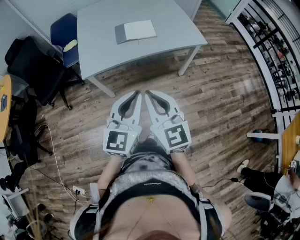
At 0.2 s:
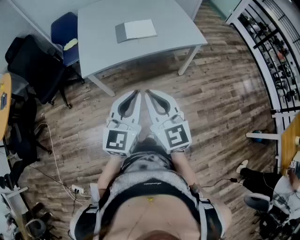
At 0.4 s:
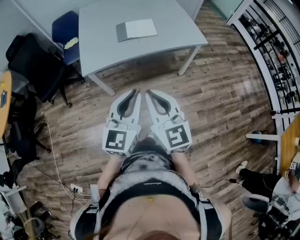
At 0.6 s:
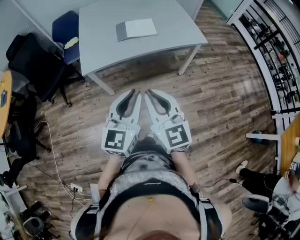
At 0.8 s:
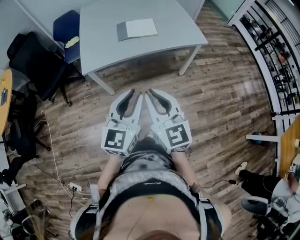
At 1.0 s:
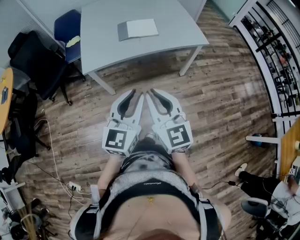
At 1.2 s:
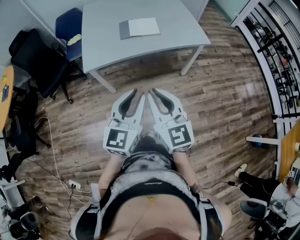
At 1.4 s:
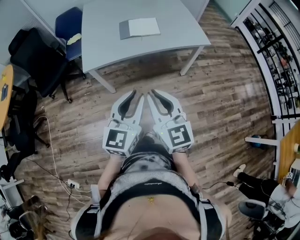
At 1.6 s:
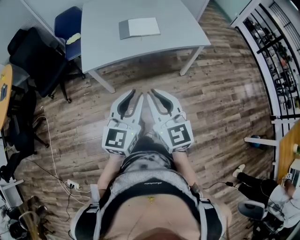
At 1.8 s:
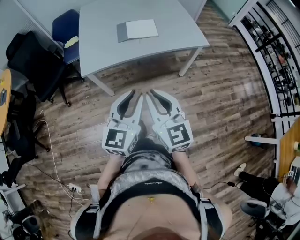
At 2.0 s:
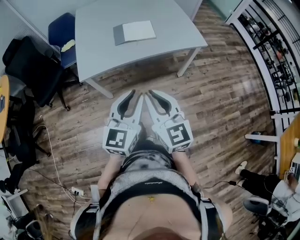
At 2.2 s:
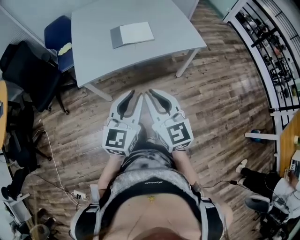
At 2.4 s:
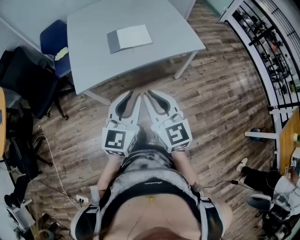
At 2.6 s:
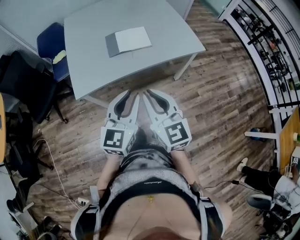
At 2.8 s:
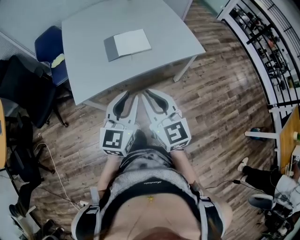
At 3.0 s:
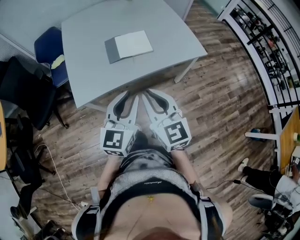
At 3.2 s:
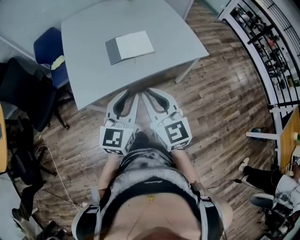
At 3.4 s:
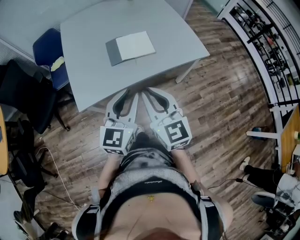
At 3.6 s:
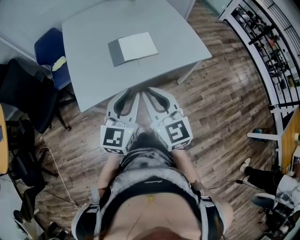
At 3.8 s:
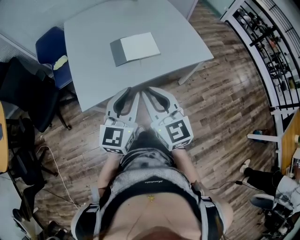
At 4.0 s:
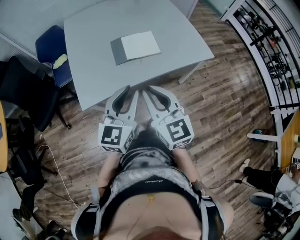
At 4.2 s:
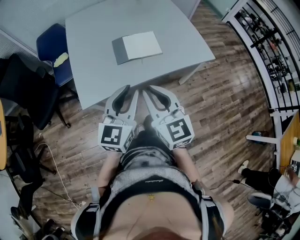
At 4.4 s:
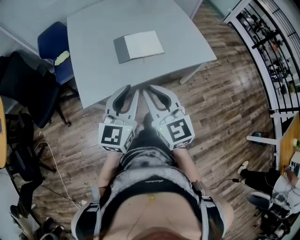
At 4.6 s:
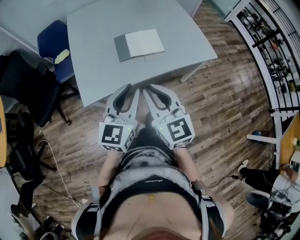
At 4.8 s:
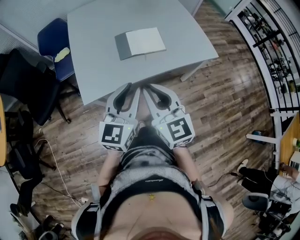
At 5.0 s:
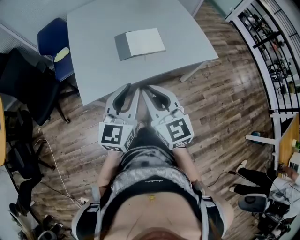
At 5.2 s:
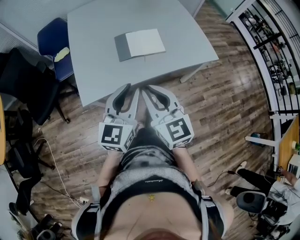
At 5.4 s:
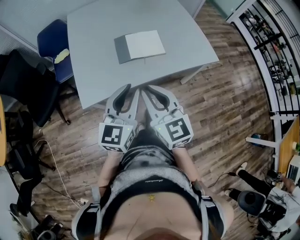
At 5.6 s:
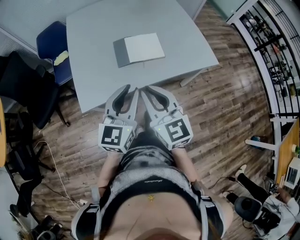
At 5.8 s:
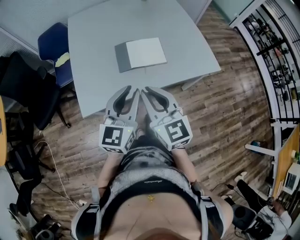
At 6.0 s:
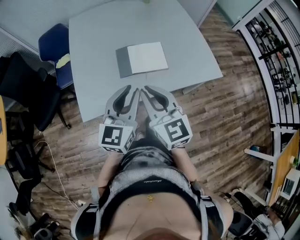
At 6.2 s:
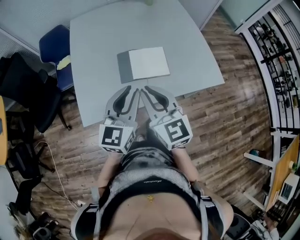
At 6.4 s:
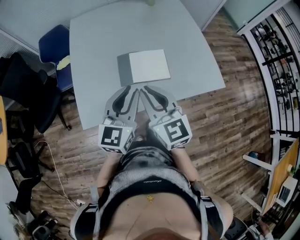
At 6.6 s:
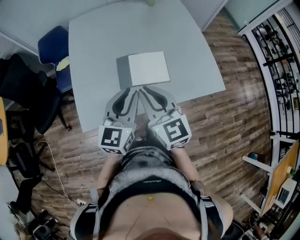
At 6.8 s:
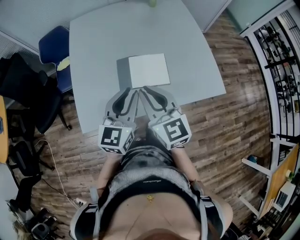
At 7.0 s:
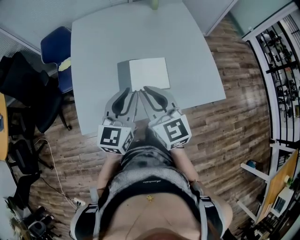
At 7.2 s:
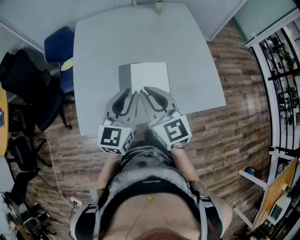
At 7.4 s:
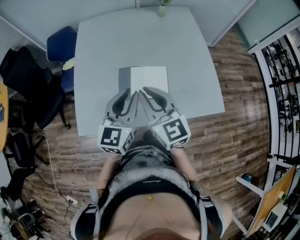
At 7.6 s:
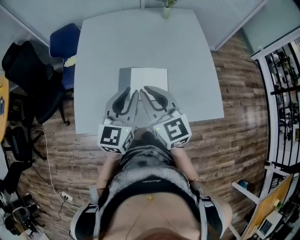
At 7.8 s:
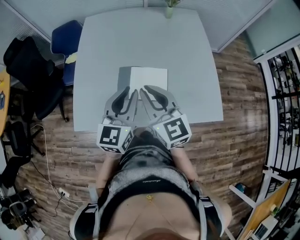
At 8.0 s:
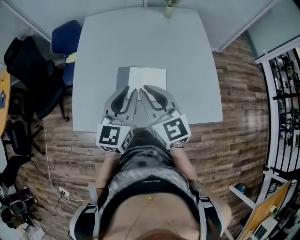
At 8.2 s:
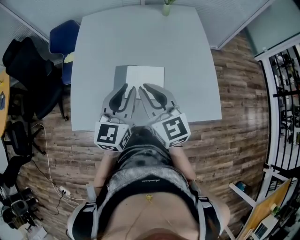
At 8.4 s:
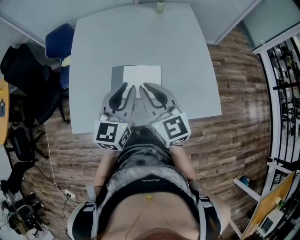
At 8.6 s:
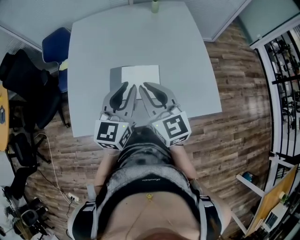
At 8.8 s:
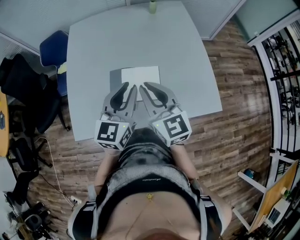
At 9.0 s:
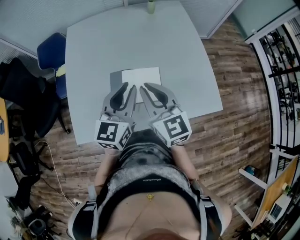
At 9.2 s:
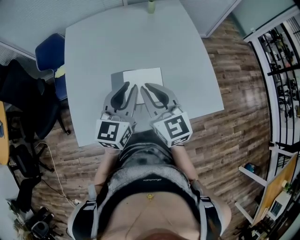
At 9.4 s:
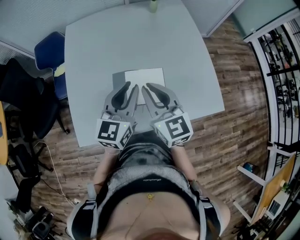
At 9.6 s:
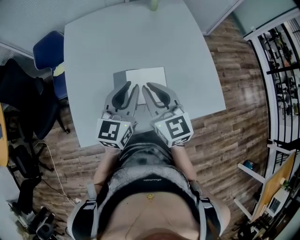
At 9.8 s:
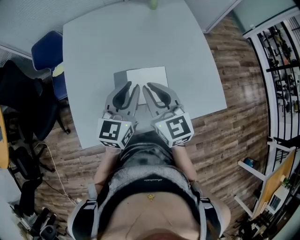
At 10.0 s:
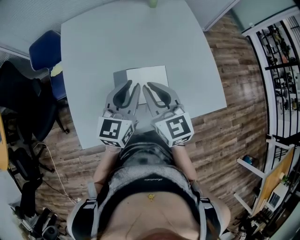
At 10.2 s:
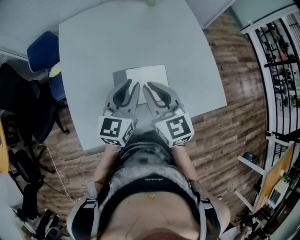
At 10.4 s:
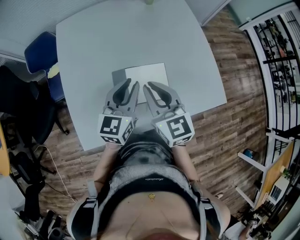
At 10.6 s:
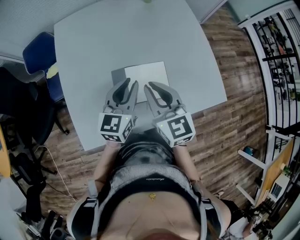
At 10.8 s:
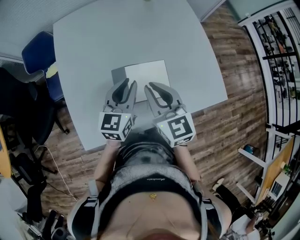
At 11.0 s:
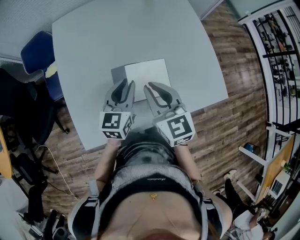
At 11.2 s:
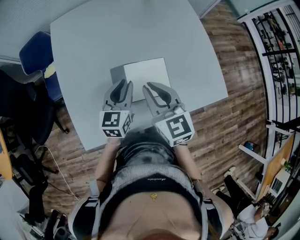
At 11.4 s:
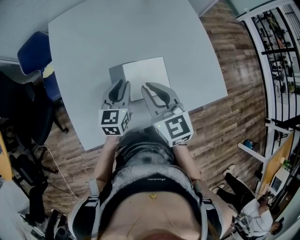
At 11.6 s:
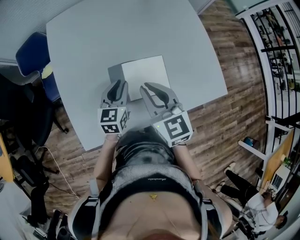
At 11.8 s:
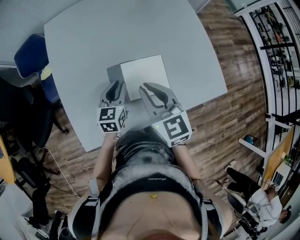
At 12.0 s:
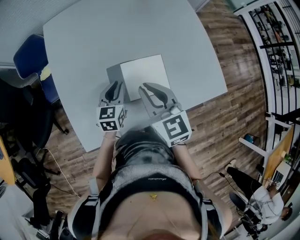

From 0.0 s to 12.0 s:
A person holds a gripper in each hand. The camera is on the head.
From 0.0 s to 1.6 s: The grippers move only a little.
From 1.6 s to 3.0 s: The two grippers go some 20 cm forward.
From 3.0 s to 4.4 s: Both grippers travel together to the left, about 5 cm.
From 4.4 s to 6.0 s: Both grippers move forward, some 10 cm.
From 6.0 s to 7.6 s: Both grippers move forward, roughly 15 cm.
From 7.6 s to 9.0 s: The right gripper changes place by about 5 cm. The left gripper changes place by some 5 cm.
From 9.0 s to 10.4 s: The right gripper travels to the left by roughly 5 cm. The left gripper is displaced forward, to the left and downward by some 10 cm.
From 10.4 s to 12.0 s: The left gripper heads downward, covering about 15 cm.

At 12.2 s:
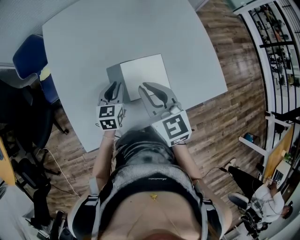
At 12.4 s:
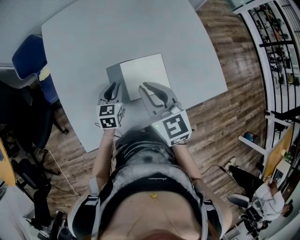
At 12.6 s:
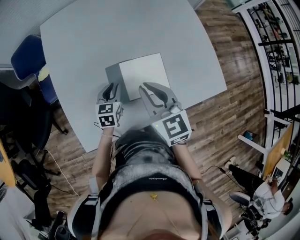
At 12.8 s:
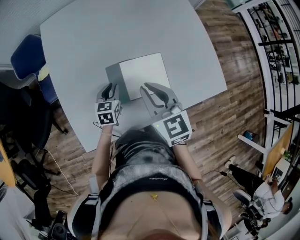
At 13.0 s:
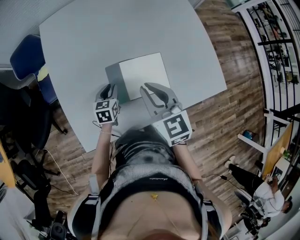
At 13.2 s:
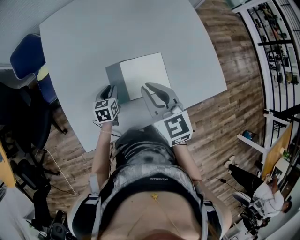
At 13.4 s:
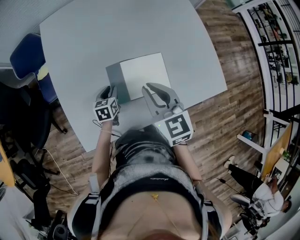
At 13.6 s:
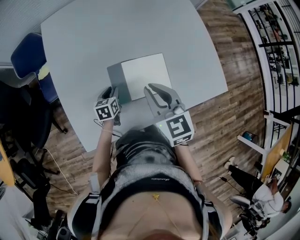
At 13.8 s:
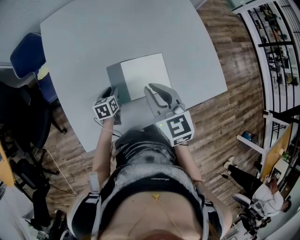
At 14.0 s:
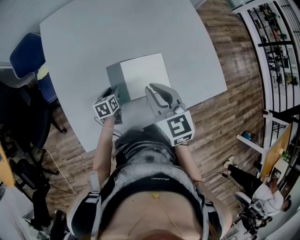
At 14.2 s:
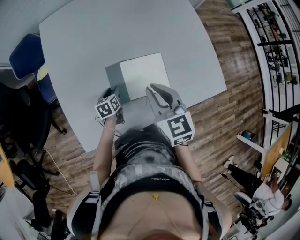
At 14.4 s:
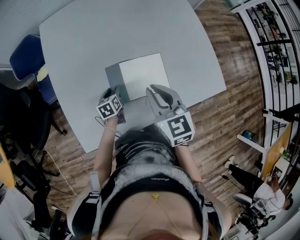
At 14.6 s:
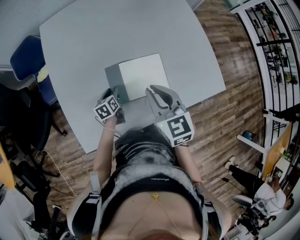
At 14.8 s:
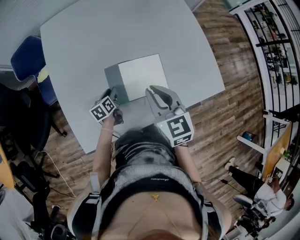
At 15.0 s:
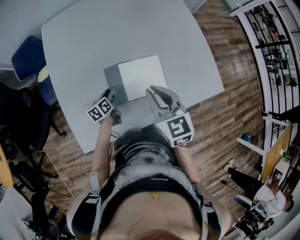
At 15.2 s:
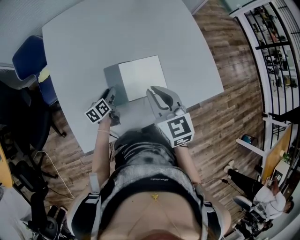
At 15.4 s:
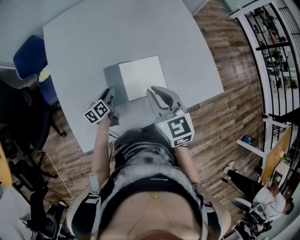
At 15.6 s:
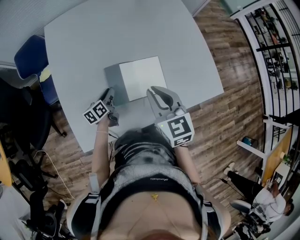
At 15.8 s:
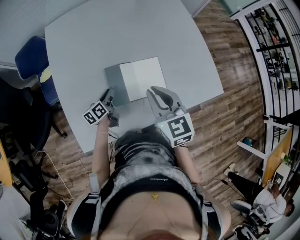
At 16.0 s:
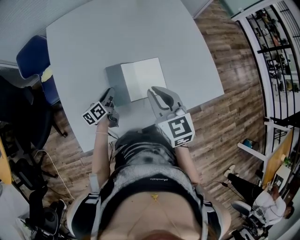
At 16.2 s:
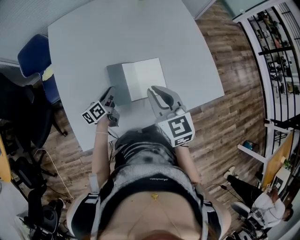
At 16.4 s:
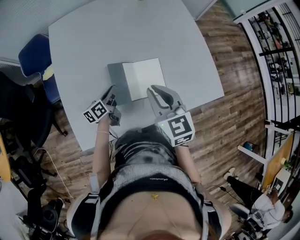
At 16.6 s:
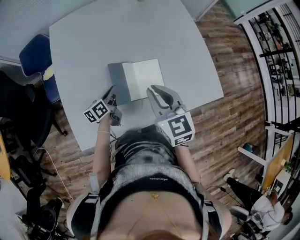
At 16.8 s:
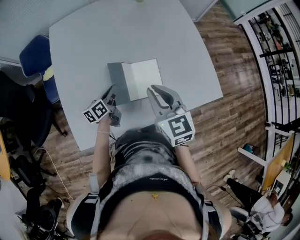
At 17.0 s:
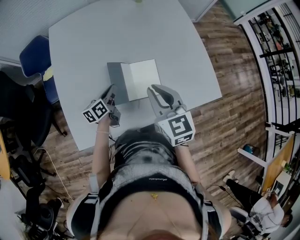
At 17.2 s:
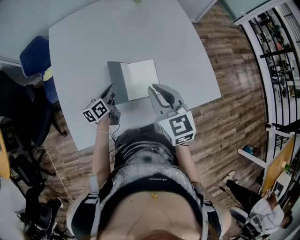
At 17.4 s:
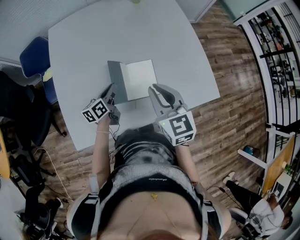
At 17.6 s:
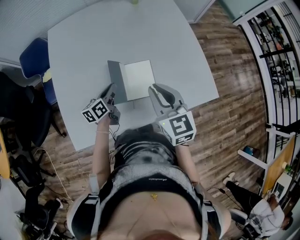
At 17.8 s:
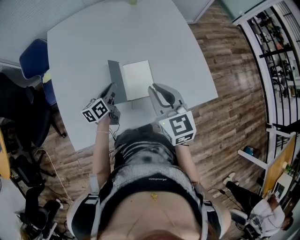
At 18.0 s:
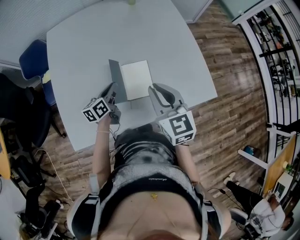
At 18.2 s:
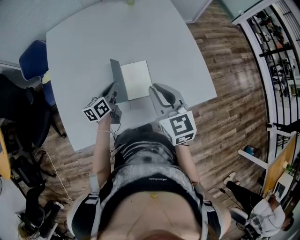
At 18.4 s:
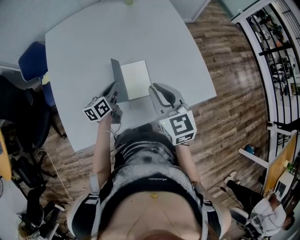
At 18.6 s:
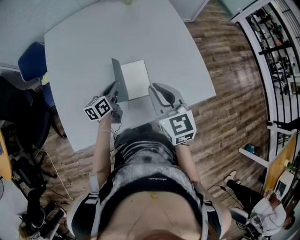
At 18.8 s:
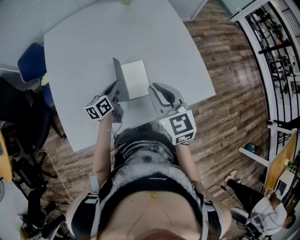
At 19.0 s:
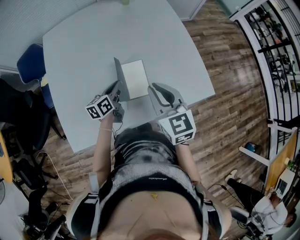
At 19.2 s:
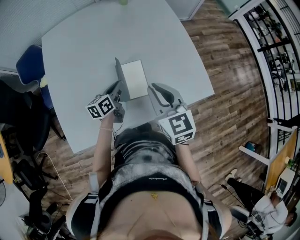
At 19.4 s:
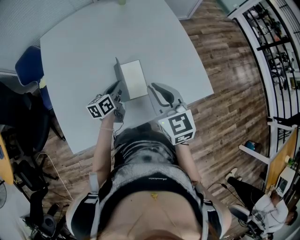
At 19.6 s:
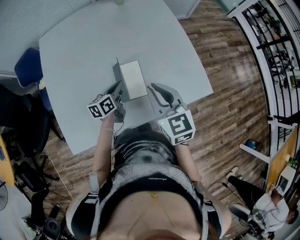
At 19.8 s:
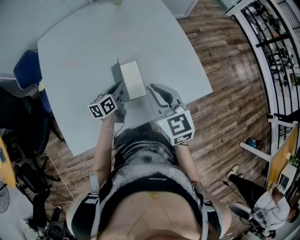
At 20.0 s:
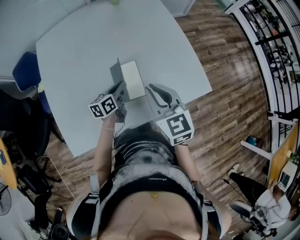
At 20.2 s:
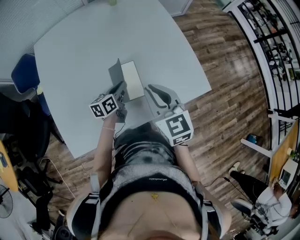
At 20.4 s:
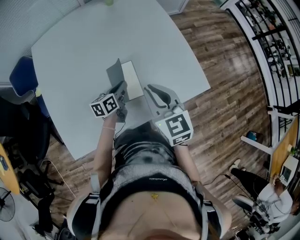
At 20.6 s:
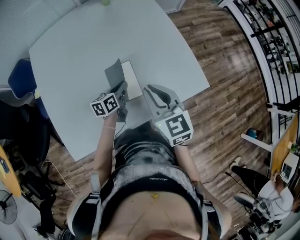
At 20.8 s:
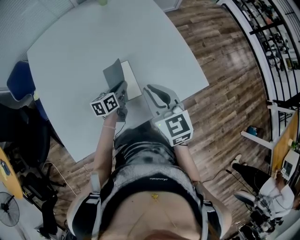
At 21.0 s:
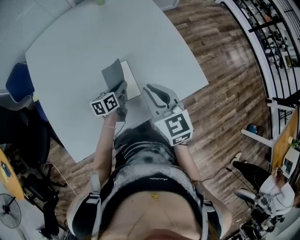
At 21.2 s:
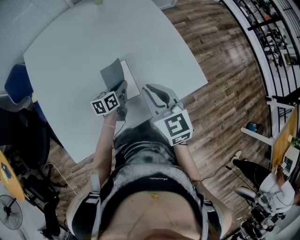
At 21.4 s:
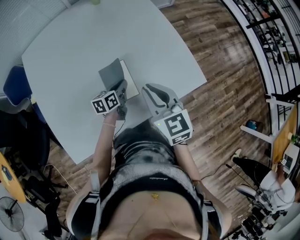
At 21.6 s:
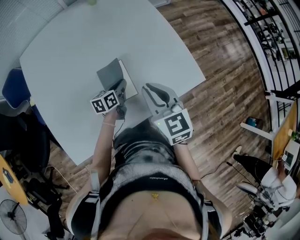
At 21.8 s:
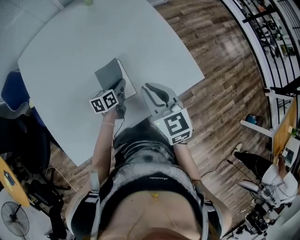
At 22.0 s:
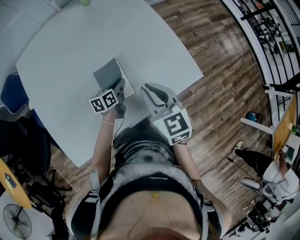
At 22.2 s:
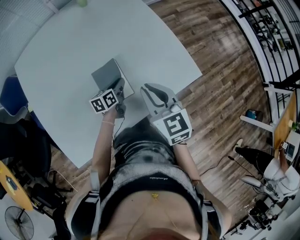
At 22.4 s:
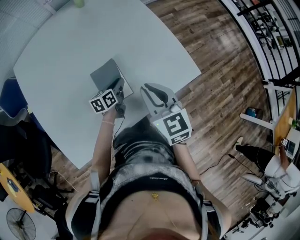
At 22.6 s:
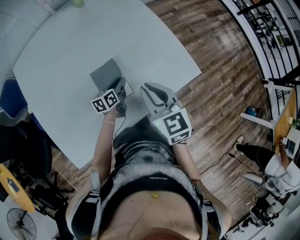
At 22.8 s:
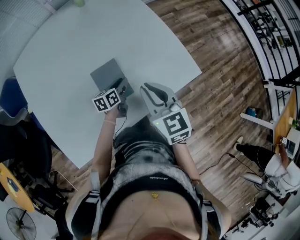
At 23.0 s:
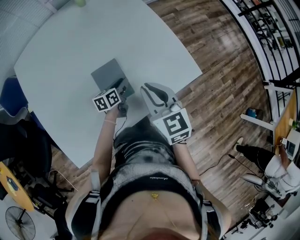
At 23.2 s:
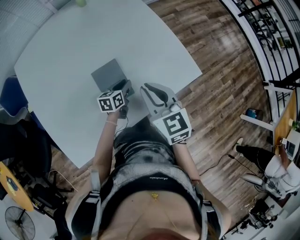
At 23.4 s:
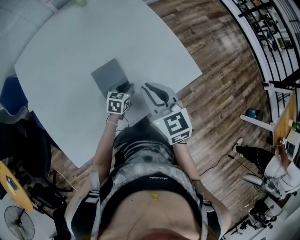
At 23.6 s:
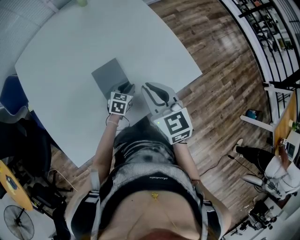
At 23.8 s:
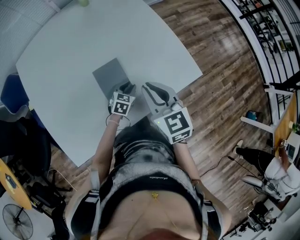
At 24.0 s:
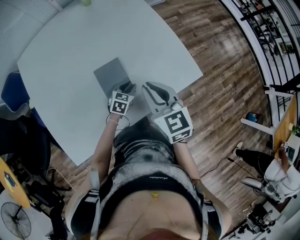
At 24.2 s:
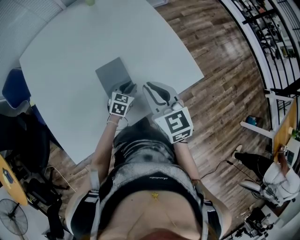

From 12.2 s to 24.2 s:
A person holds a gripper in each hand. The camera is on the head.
From 12.2 s to 13.8 s: The left gripper travels downward and to the left by roughly 15 cm, and rotates approximately 20 degrees.
From 13.8 s to 15.2 s: The left gripper swivels roughly 20 degrees.
From 15.2 s to 16.6 s: The left gripper is displaced upward by some 5 cm, and closes its fingers.
From 16.6 s to 18.2 s: The right gripper is displaced to the right by some 10 cm, while the left gripper travels to the right and upward by approximately 10 cm.
From 18.2 s to 19.8 s: The left gripper shifts some 10 cm to the right.
From 19.8 s to 21.2 s: The left gripper shifts roughly 5 cm to the right.
From 21.2 s to 22.6 s: The grippers move only a little.
From 22.6 s to 24.2 s: The left gripper shifts by about 5 cm, and twists approximately 40 degrees clockwise, seen from behind.
